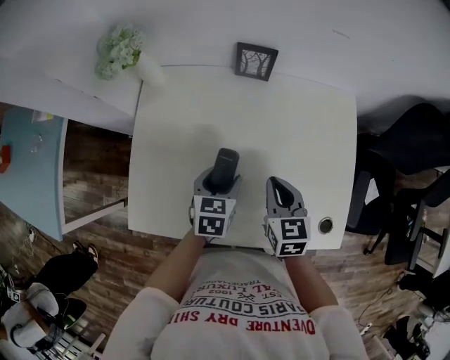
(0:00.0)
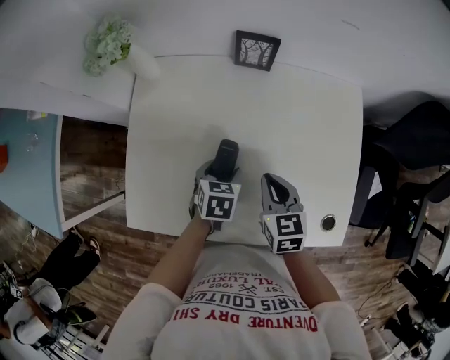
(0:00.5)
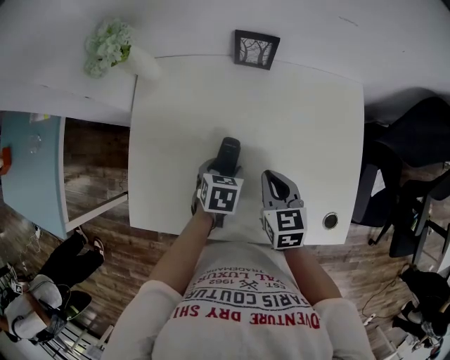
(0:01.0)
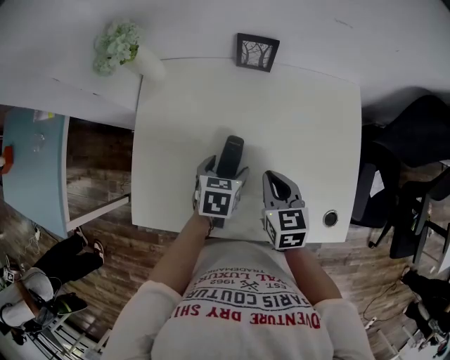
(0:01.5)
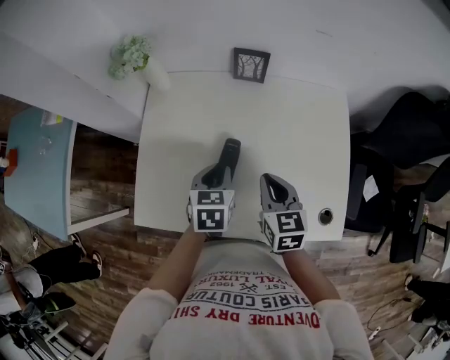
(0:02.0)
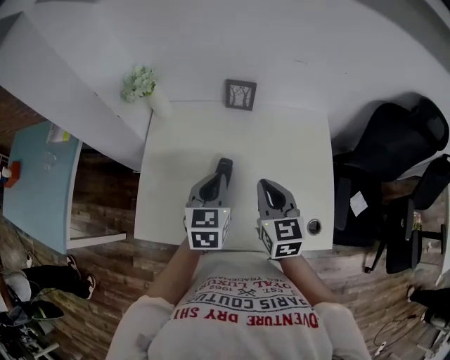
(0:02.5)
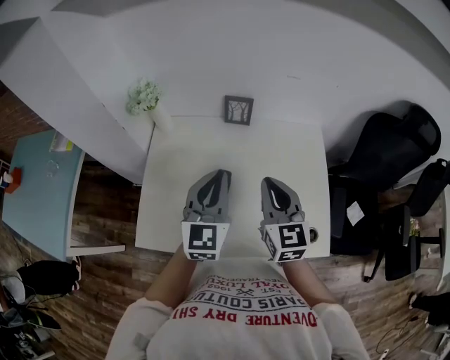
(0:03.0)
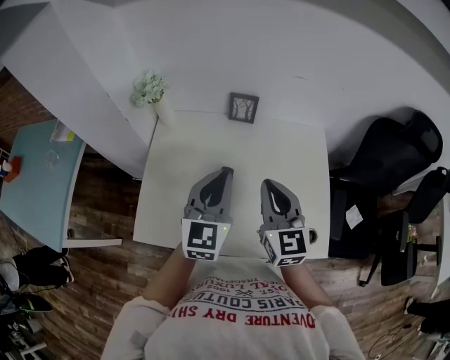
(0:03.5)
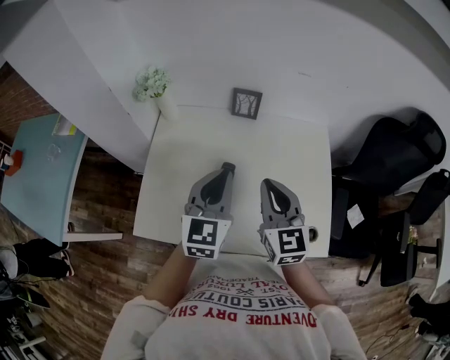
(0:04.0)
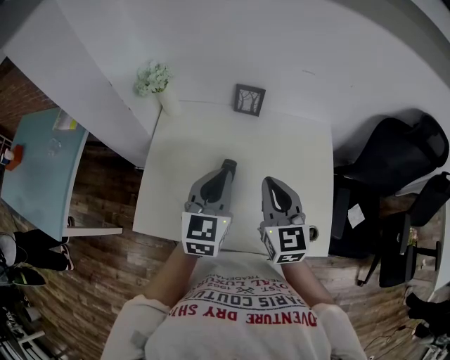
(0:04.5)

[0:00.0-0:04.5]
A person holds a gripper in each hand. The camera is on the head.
0:00.0 to 0:02.0: The left gripper heads upward, covering some 5 cm, and closes its fingers.
0:02.0 to 0:04.5: Both grippers travel together upward, some 15 cm. The left gripper tips its fingers upward by some 30 degrees; the right gripper rotates some 20 degrees.

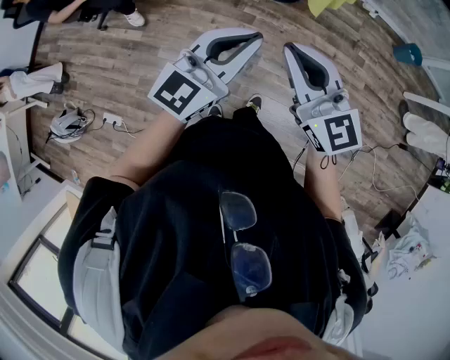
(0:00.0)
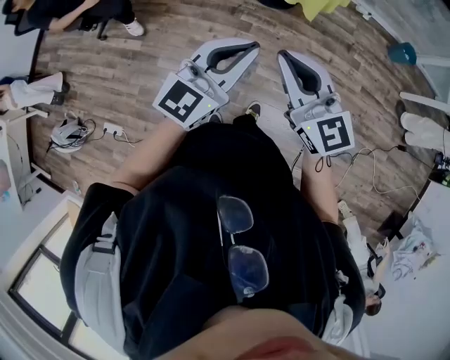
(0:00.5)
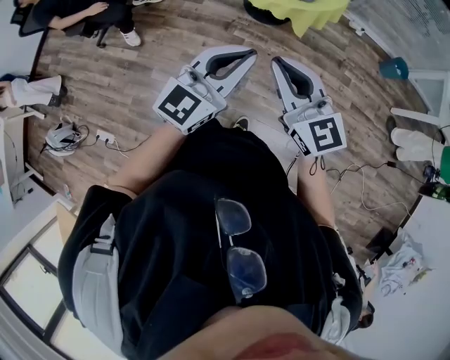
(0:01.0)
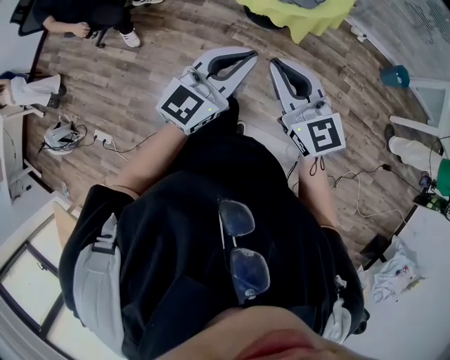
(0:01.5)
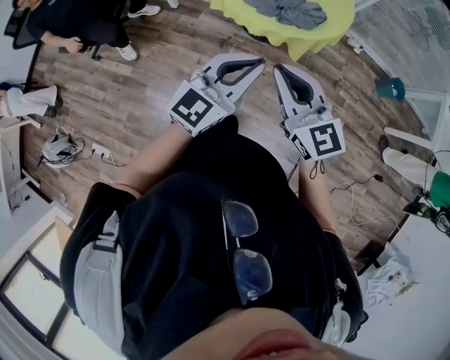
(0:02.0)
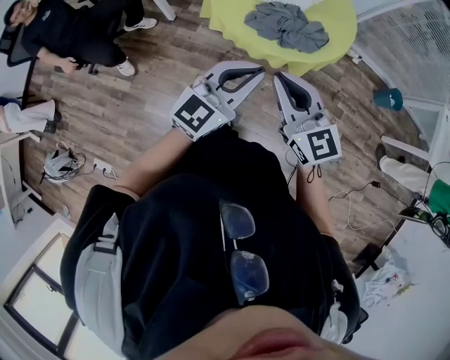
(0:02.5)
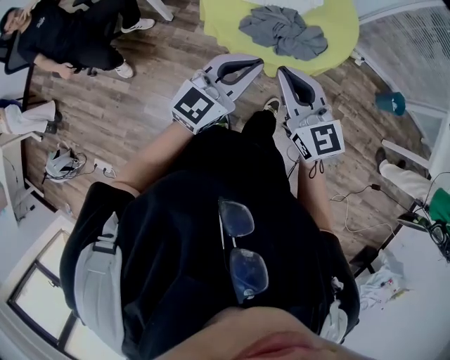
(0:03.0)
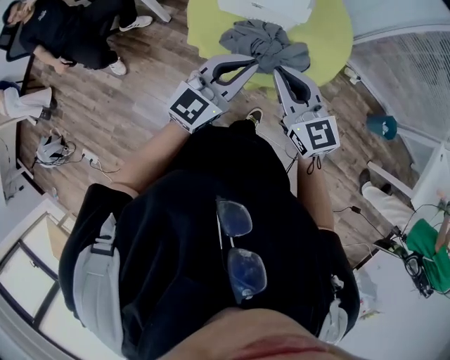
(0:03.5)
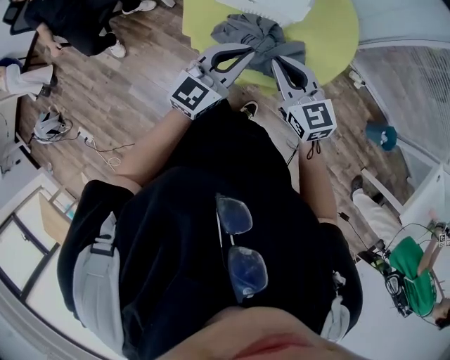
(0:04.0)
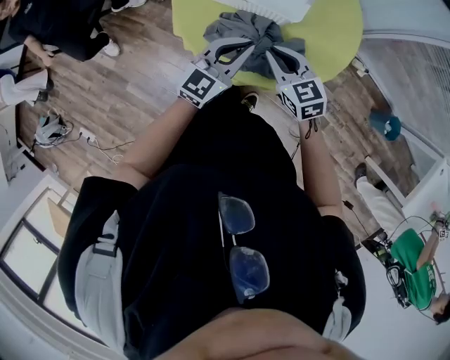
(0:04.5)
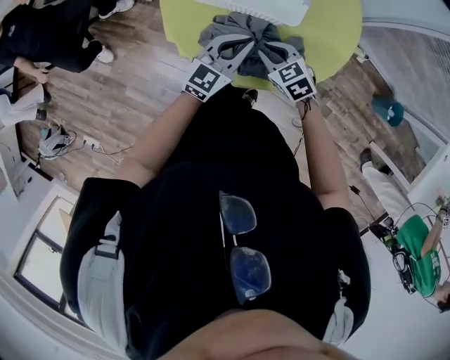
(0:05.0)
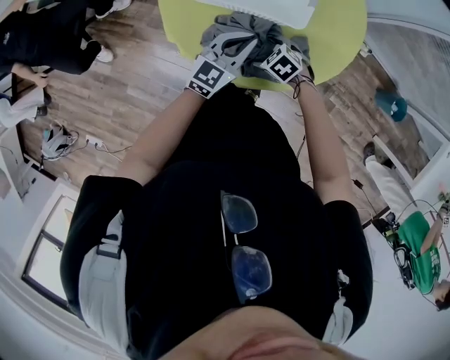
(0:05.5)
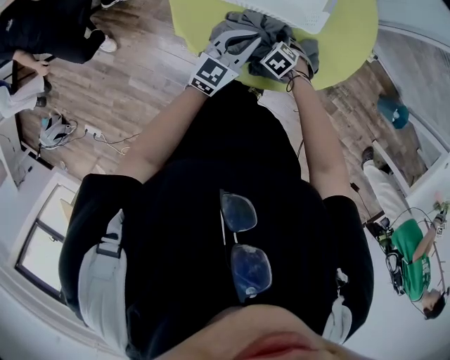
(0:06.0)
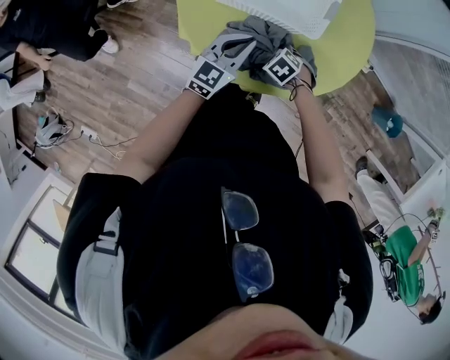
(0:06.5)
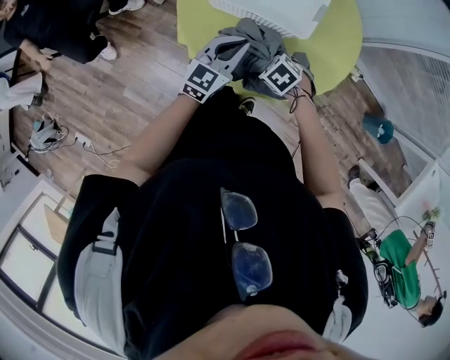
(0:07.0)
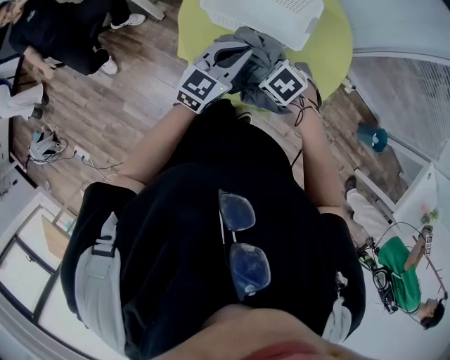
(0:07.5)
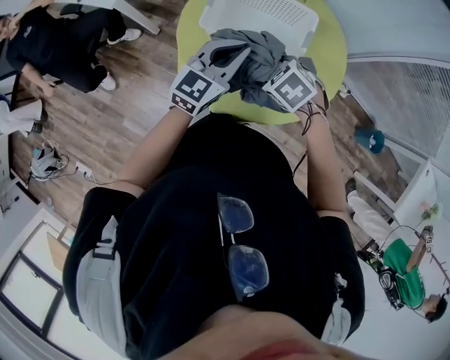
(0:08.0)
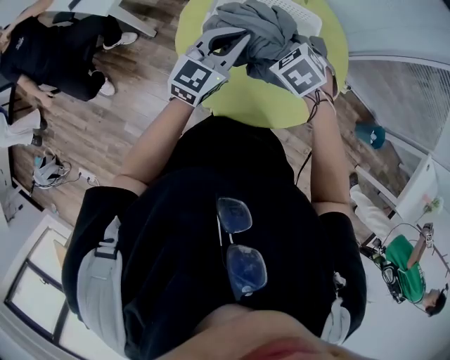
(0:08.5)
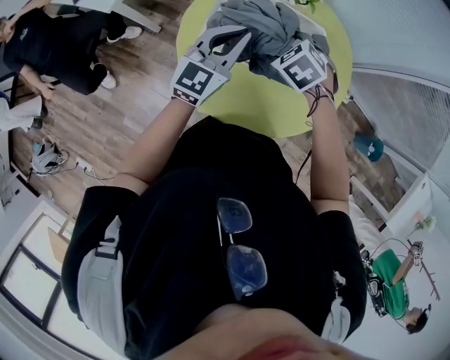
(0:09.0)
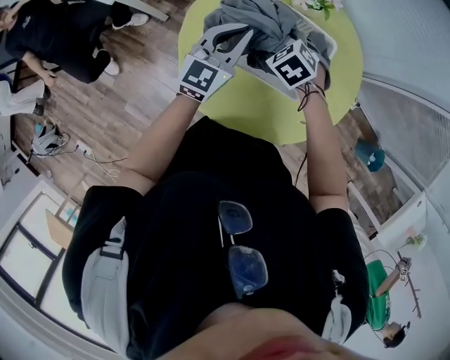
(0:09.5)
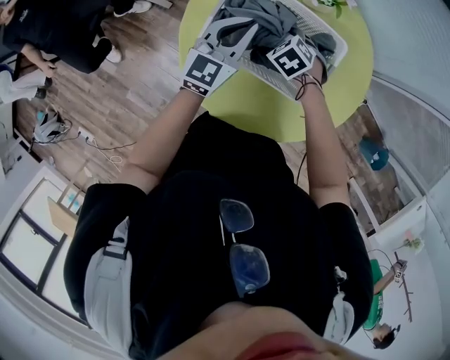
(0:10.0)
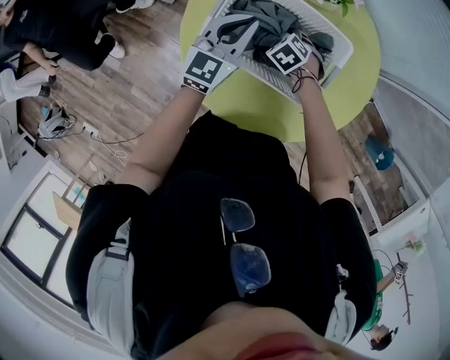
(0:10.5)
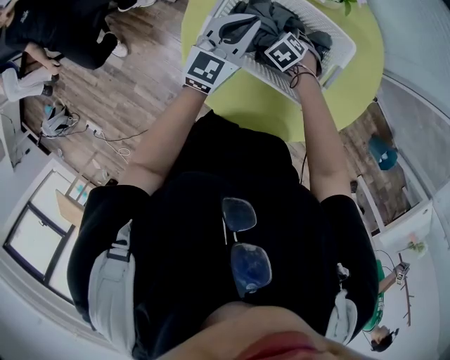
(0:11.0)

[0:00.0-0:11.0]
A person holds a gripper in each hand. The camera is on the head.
0:00.0 to 0:02.0: The left gripper moves forward and to the right, some 20 cm. Meanwhile the right gripper is displaced forward by about 15 cm.
0:02.0 to 0:03.5: The grippers both shift forward by roughly 30 cm.
0:03.5 to 0:05.5: The grippers both shift downward and forward by some 35 cm. The right gripper points its fingers approximately 60 degrees further downward, and opens.
0:05.5 to 0:07.5: Both grippers travel together upward, roughly 15 cm.
0:07.5 to 0:09.0: The two grippers go about 20 cm forward.
0:09.0 to 0:11.0: The left gripper shifts roughly 15 cm downward and forward. The right gripper heads downward, covering about 25 cm.

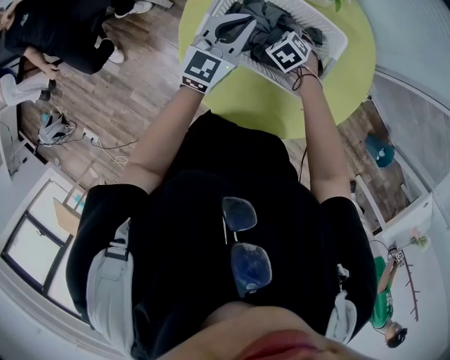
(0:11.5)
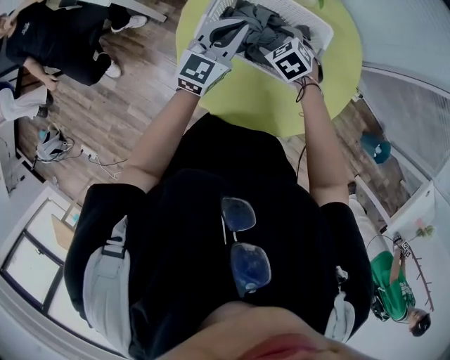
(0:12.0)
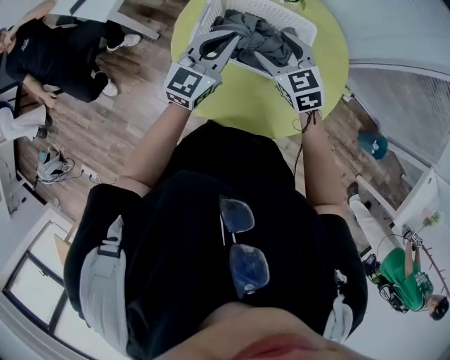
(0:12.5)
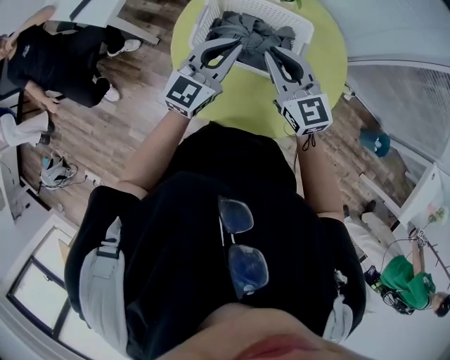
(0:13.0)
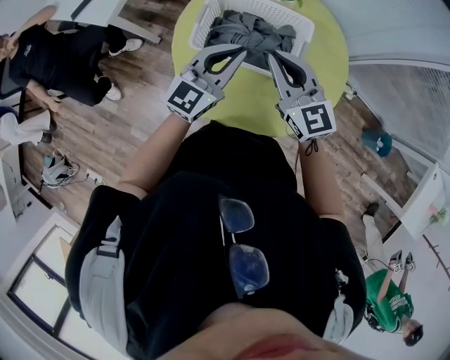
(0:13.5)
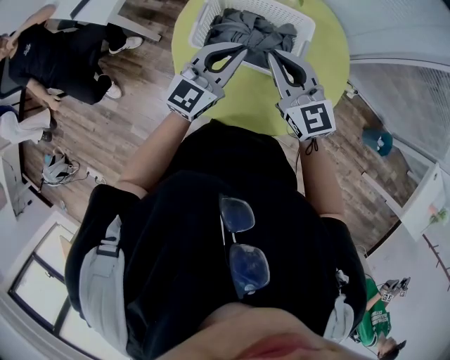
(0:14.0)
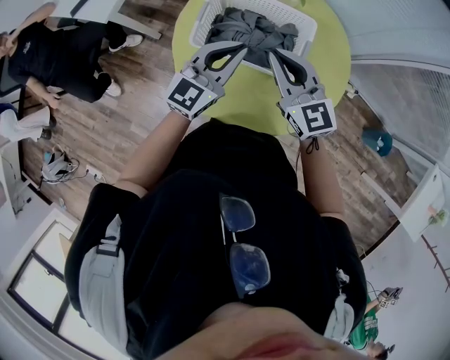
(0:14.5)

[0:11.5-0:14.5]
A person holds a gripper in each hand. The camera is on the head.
0:11.5 to 0:13.0: The left gripper shifts some 15 cm backward and upward. The right gripper moves upward, roughly 30 cm, angles its fingers upward, by approximately 60 degrees, and closes its fingers.
0:13.0 to 0:14.5: The grippers stay close to where they were, moving slightly.

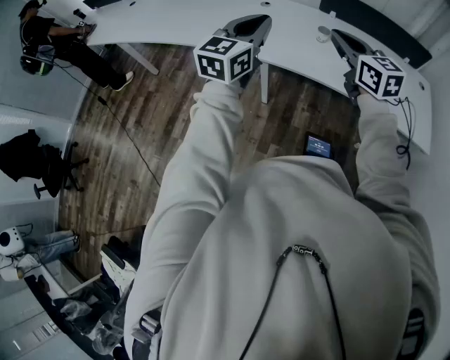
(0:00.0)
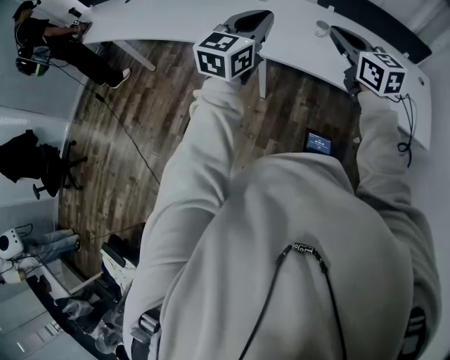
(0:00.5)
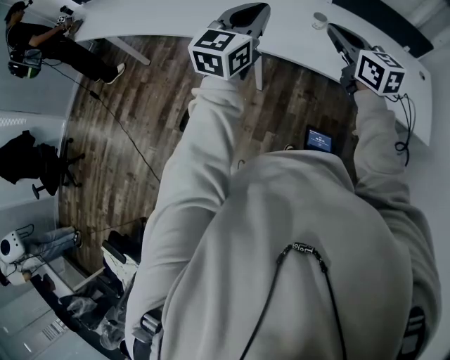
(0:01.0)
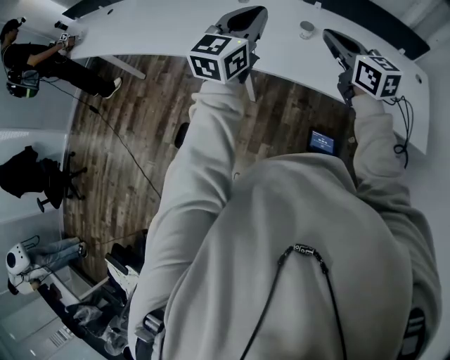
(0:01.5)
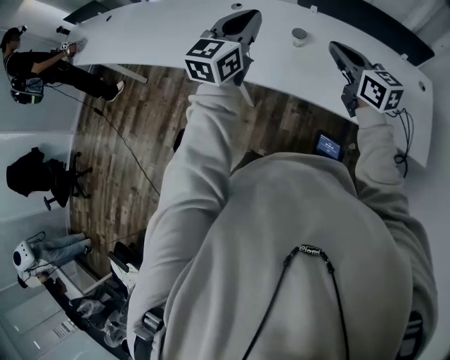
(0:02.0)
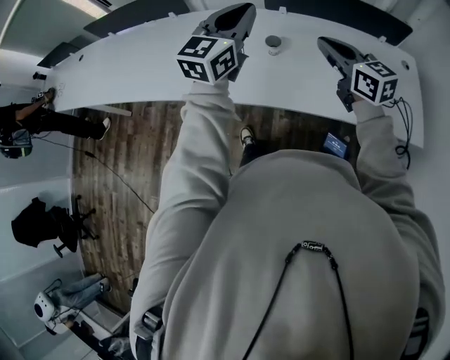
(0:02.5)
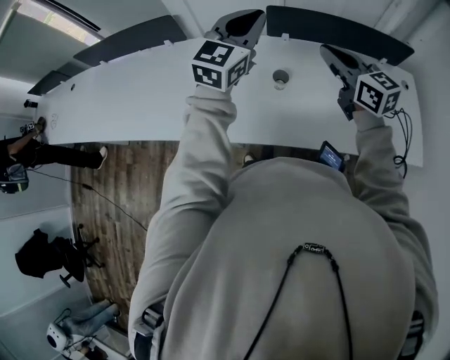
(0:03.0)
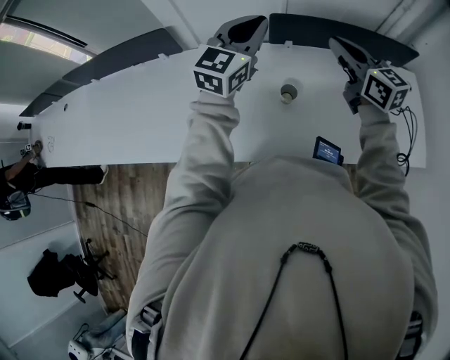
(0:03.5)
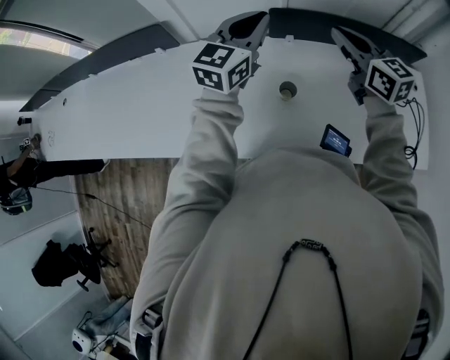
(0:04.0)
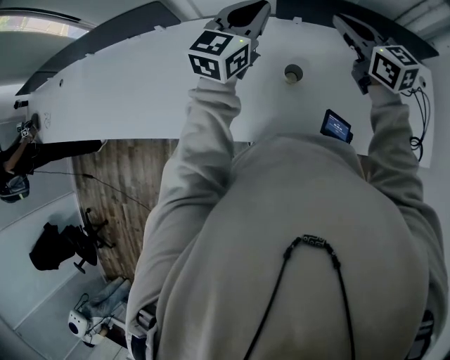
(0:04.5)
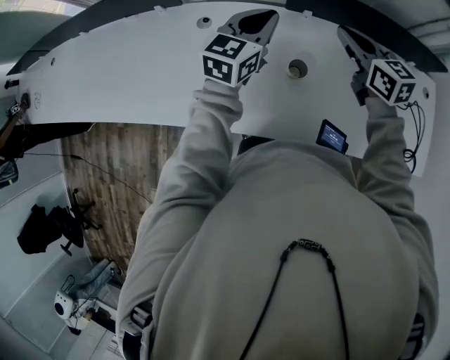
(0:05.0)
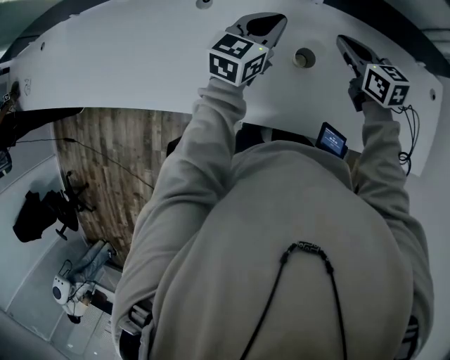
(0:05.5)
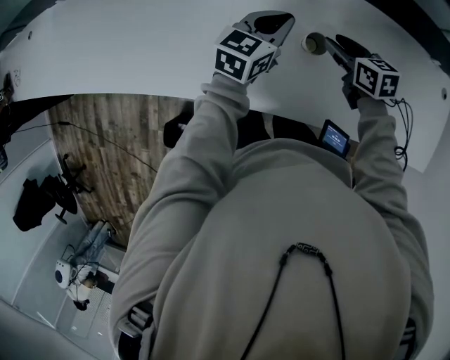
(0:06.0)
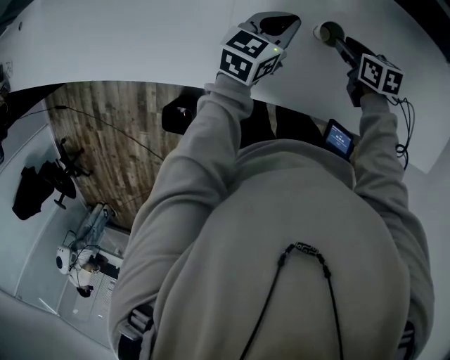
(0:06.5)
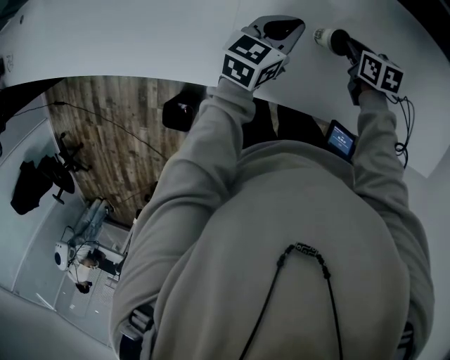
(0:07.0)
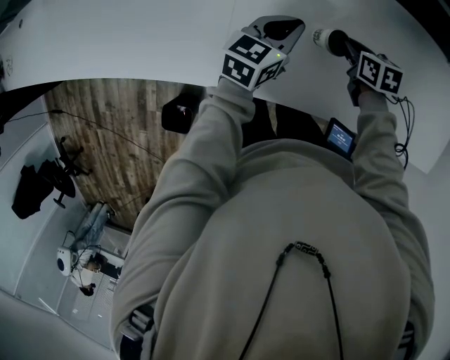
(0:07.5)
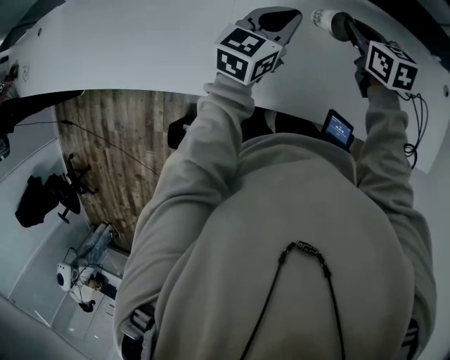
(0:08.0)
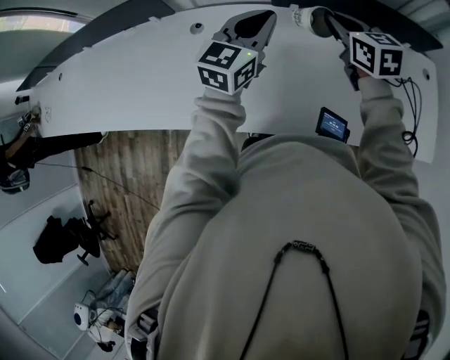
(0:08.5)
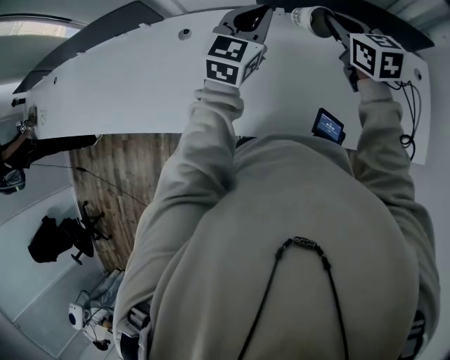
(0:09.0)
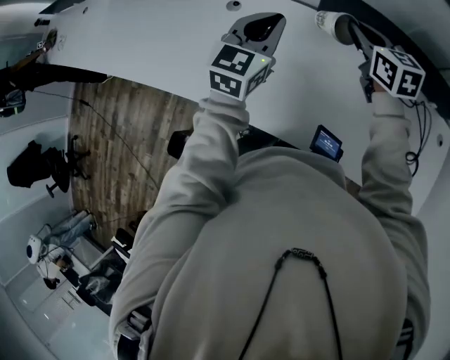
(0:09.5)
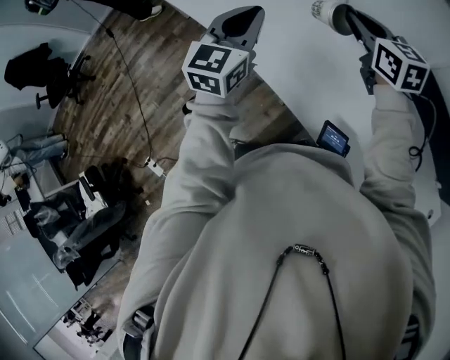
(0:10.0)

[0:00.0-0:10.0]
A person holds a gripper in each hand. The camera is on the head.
0:00.0 to 0:02.0: The left gripper moves forward and to the right, roughly 25 cm, while the right gripper heads to the right and forward, covering roughly 25 cm.
0:02.0 to 0:04.0: The grippers both shift forward by roughly 40 cm.
0:04.0 to 0:06.0: The grippers both shift downward by roughly 30 cm. The left gripper swivels about 30 degrees. The right gripper points its fingers about 30 degrees further downward, and opens up.
0:06.0 to 0:08.0: The grippers both shift upward by about 5 cm. The right gripper closes.
0:08.0 to 0:10.0: The right gripper moves roughly 50 cm, and rotates some 40 degrees; the left gripper shifts by roughly 50 cm, and rotates approximately 50 degrees.
